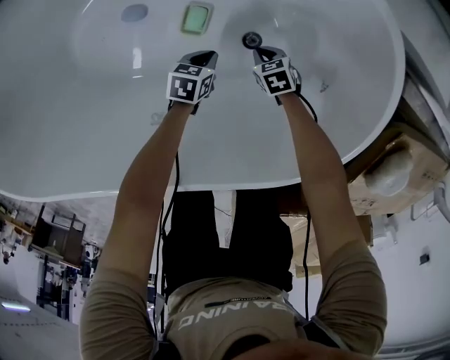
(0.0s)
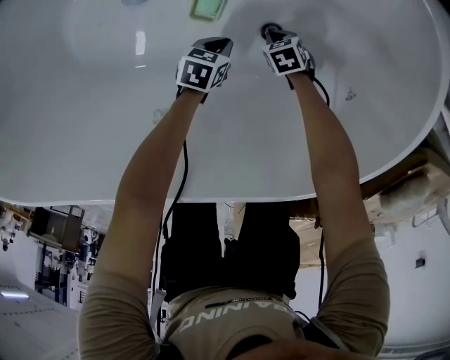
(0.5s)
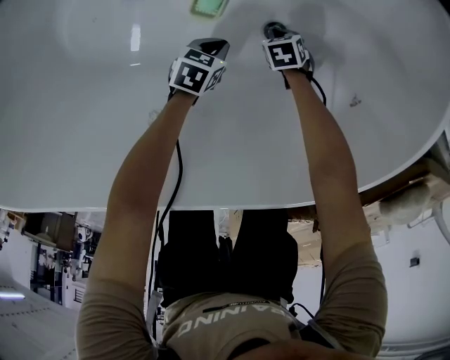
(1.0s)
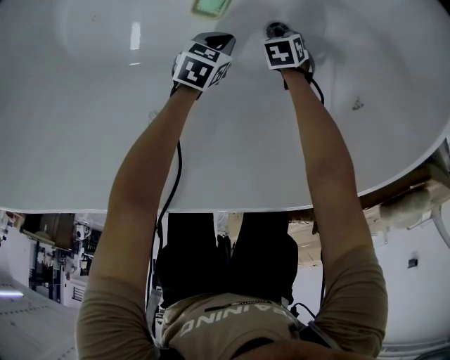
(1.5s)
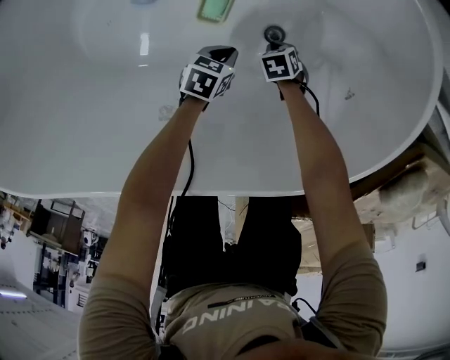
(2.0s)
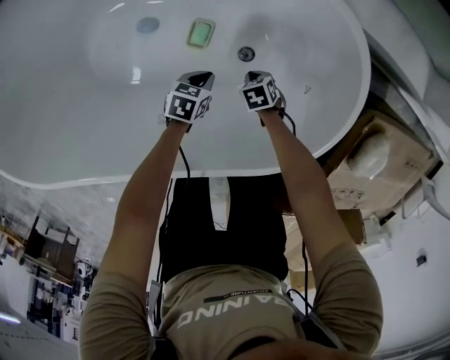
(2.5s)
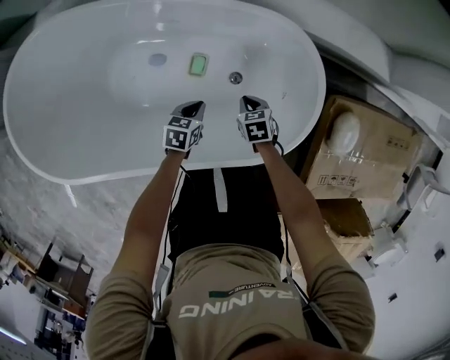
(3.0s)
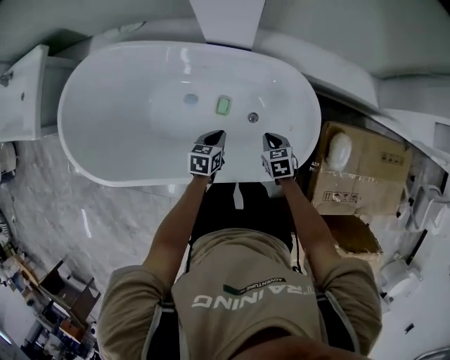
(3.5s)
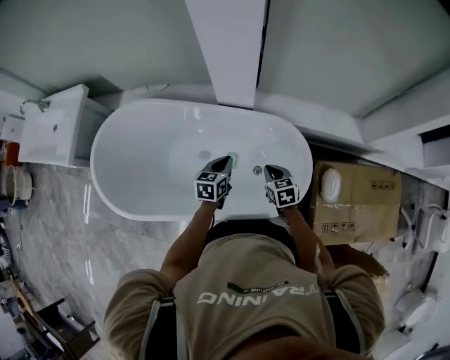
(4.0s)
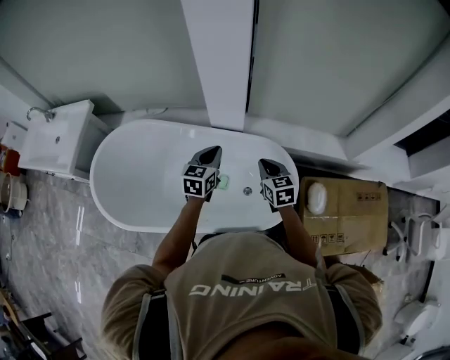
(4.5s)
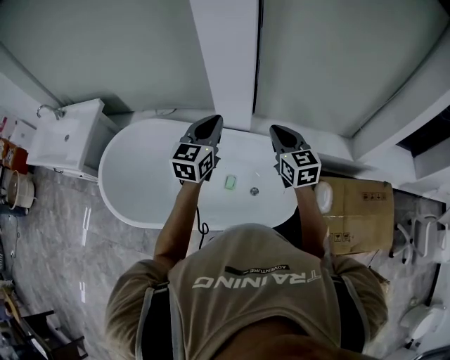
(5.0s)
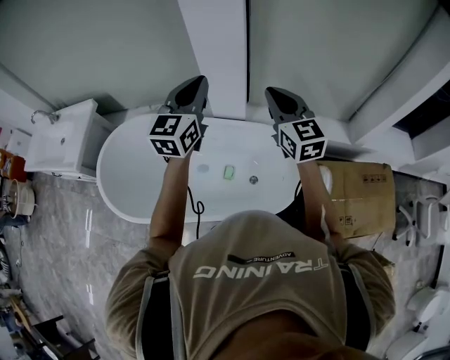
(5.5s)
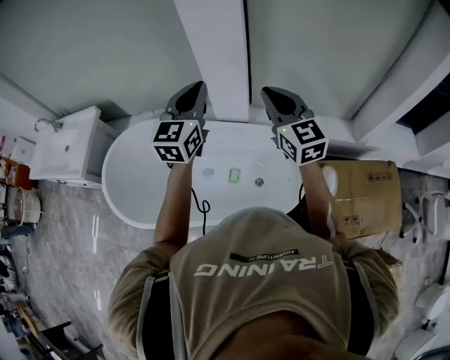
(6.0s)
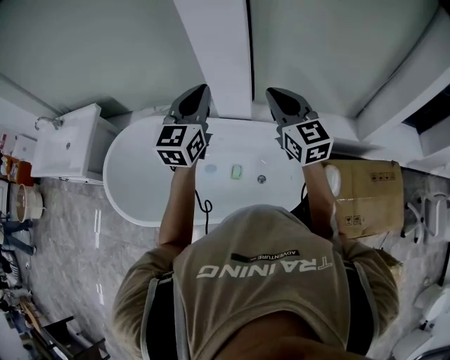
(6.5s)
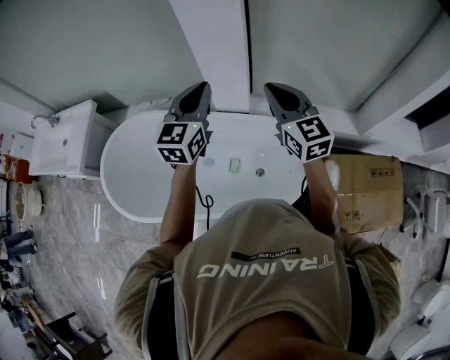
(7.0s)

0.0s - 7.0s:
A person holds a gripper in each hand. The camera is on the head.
0.0s - 2.0s: The right gripper moves downward, about 5 cm.
2.0s - 3.5s: Both grippers travel together upward, roughly 50 cm. The left gripper turns by approximately 20 degrees, while the right gripper rotates roughly 30 degrees.
3.5s - 5.0s: Both grippers travel together upward, roughly 50 cm. The right gripper tips its fingers upward by approximately 40 degrees. The left gripper angles its fingers upward, by about 40 degrees.
5.0s - 7.0s: The two grippers go roughly 10 cm upward.

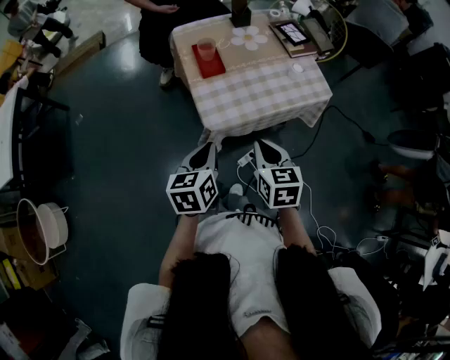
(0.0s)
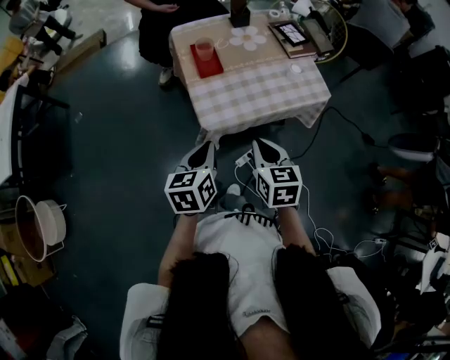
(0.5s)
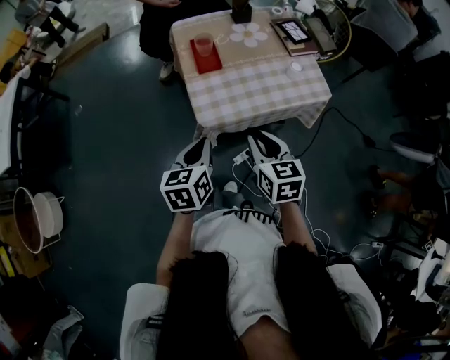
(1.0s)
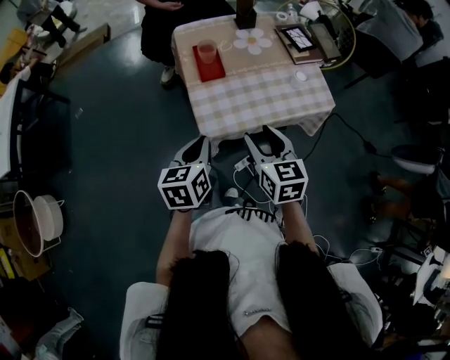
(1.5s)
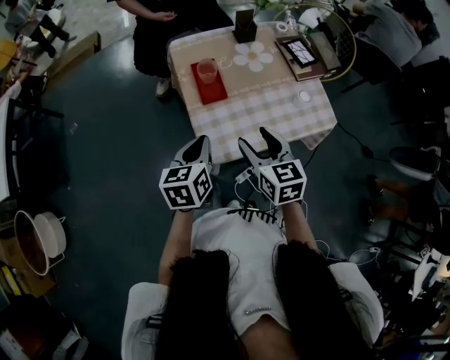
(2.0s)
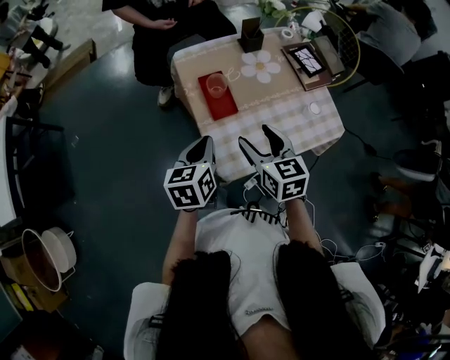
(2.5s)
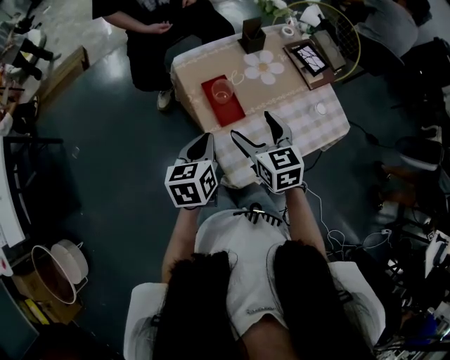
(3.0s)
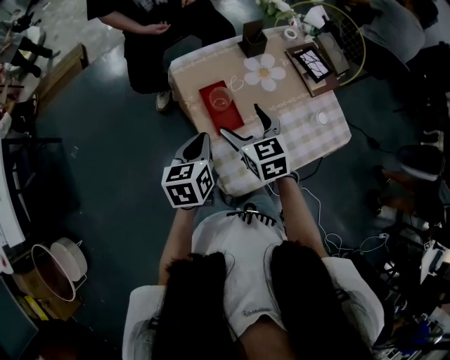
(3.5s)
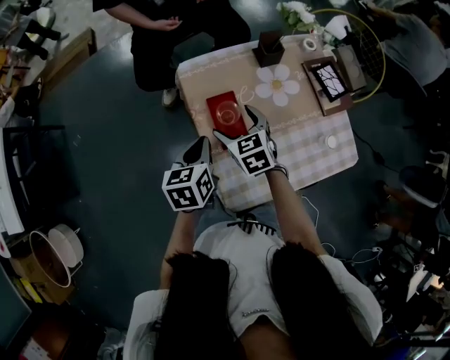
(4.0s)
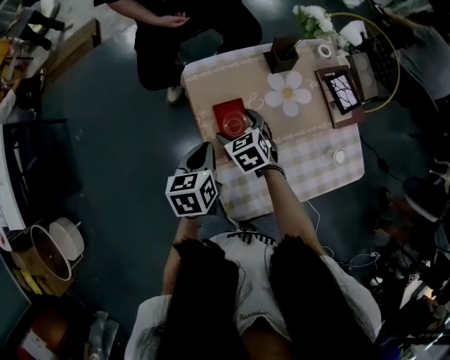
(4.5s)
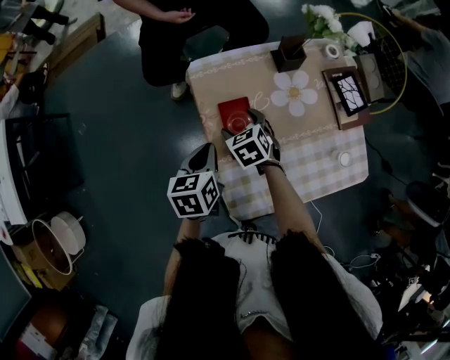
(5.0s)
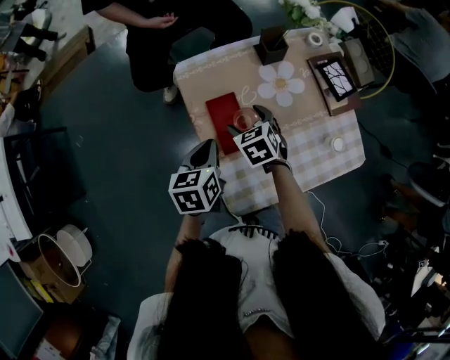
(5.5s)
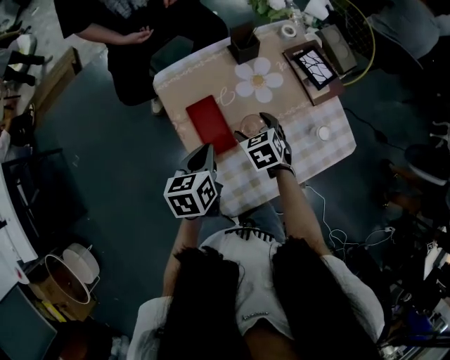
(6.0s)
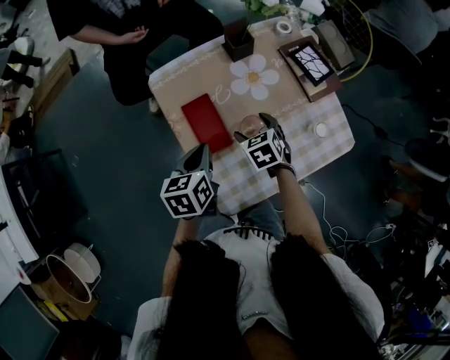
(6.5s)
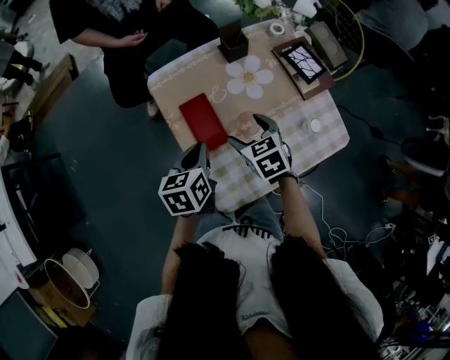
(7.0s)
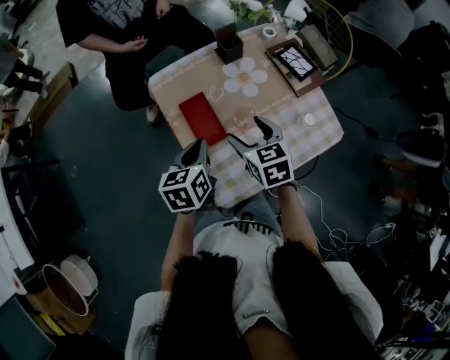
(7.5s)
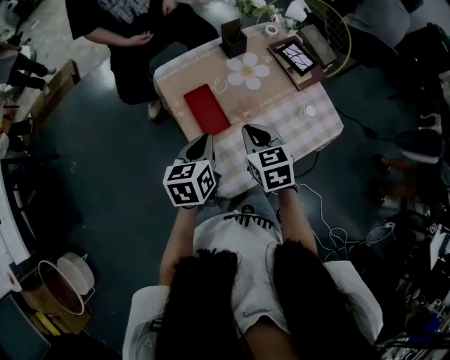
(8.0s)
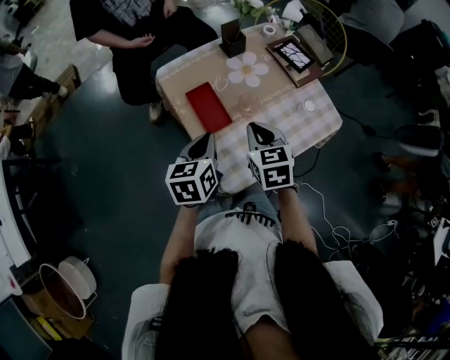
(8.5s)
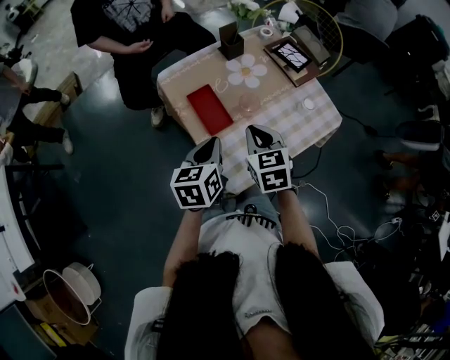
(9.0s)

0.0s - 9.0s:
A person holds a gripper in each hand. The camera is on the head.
0.0s - 2.0s: Both grippers move forward, about 15 cm. The right gripper opens up.
2.0s - 4.5s: The left gripper goes approximately 25 cm forward. The right gripper is displaced forward, downward and to the left by some 35 cm, changes its angle by about 30 degrees, and opens up.
4.5s - 7.0s: The left gripper moves to the right, about 5 cm. Meanwhile the right gripper goes some 15 cm to the right, backward and upward.
7.0s - 9.0s: The two grippers go roughly 10 cm backward and upward. The right gripper turns by some 20 degrees, and closes up.

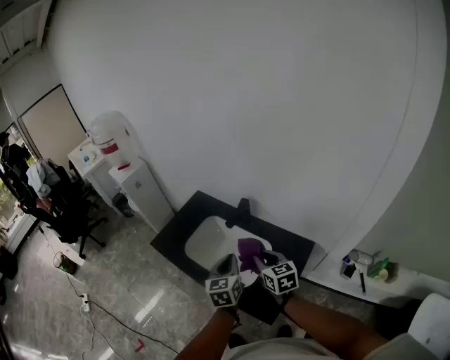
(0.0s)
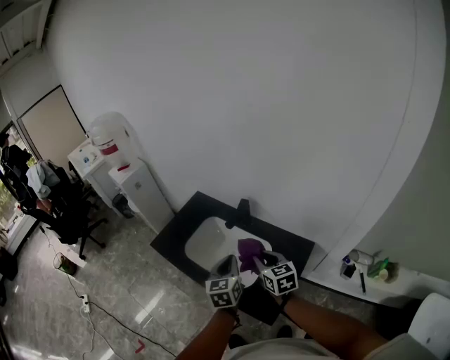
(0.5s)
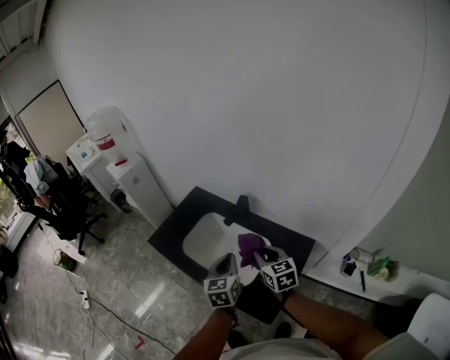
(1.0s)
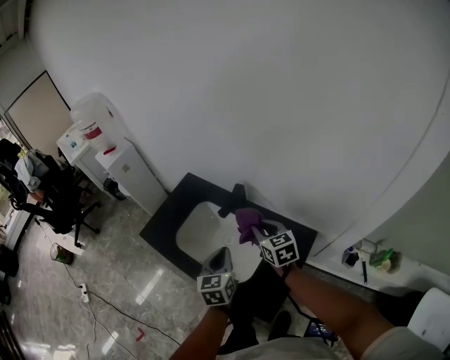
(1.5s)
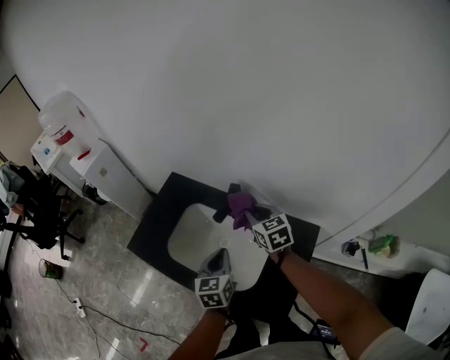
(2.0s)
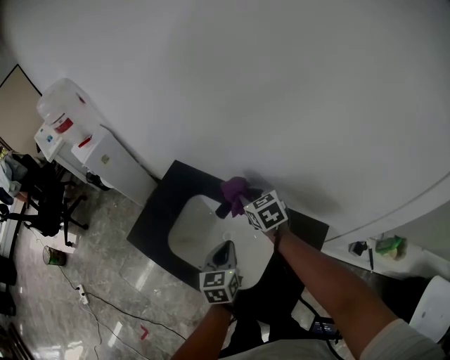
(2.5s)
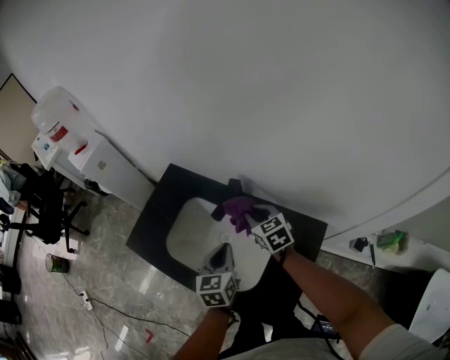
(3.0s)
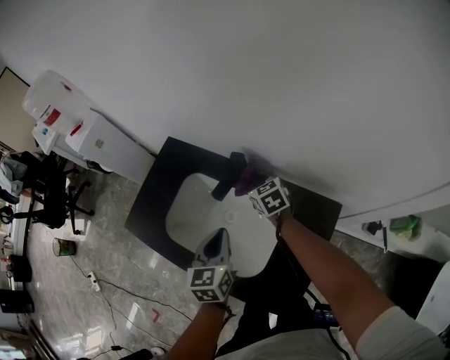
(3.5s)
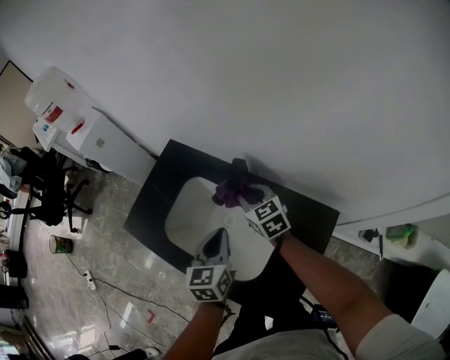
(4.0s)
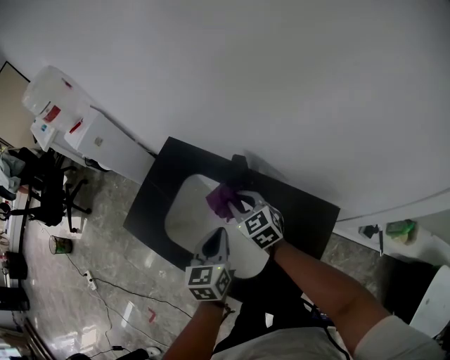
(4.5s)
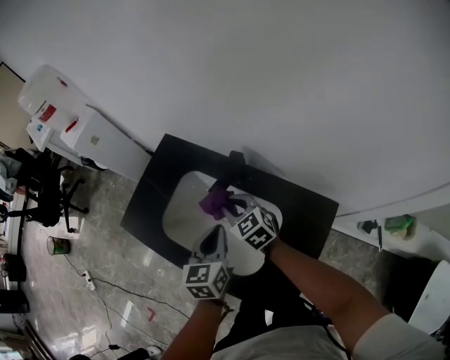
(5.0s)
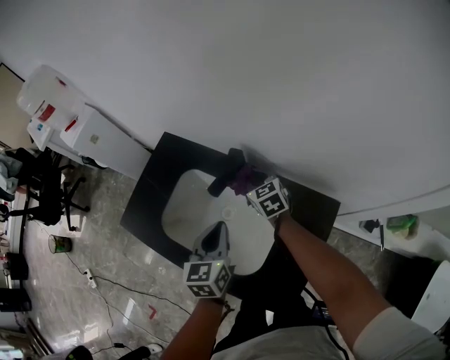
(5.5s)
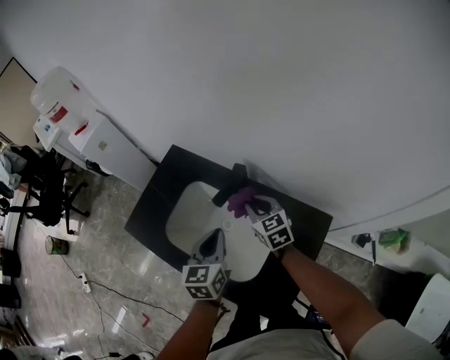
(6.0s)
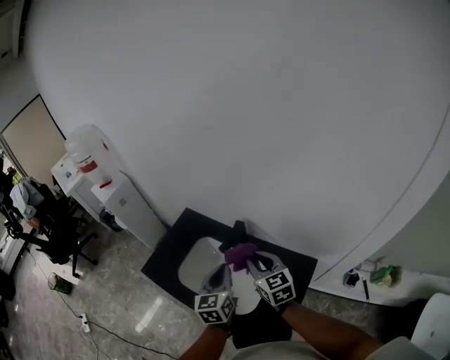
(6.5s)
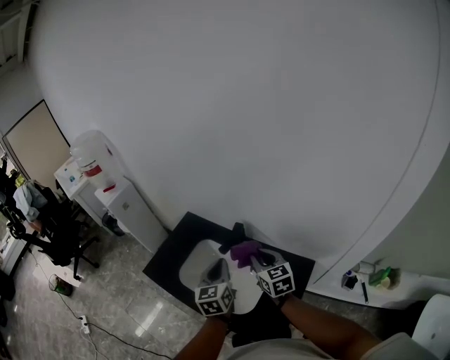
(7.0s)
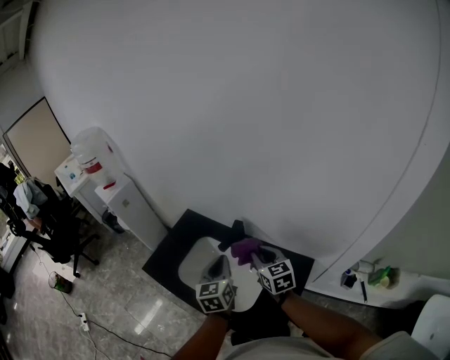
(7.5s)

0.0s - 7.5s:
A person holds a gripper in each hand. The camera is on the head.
0.0s - 2.0s: The right gripper goes approximately 20 cm forward. The left gripper shifts about 15 cm forward and downward.
2.0s - 4.0s: The right gripper heads downward and forward, covering some 10 cm, while the left gripper moves roughly 5 cm.
4.0s - 5.5s: The right gripper goes about 5 cm downward.
5.5s - 7.5s: The left gripper shifts some 15 cm upward, while the right gripper travels upward and backward by some 30 cm.

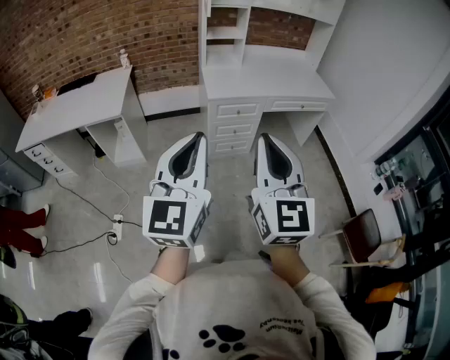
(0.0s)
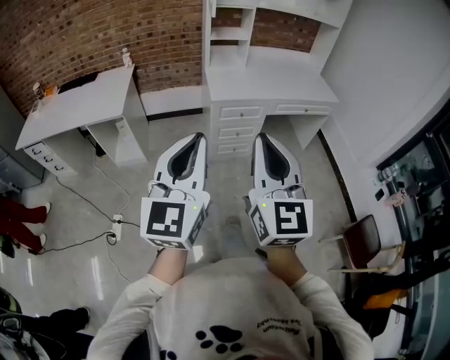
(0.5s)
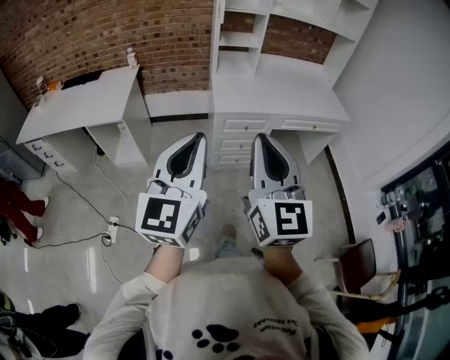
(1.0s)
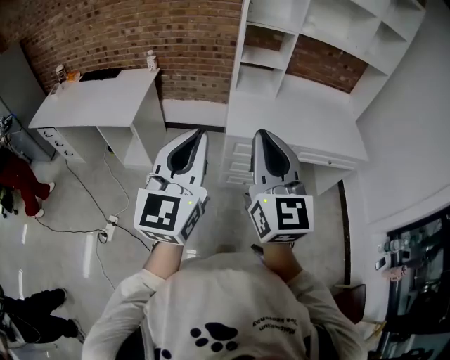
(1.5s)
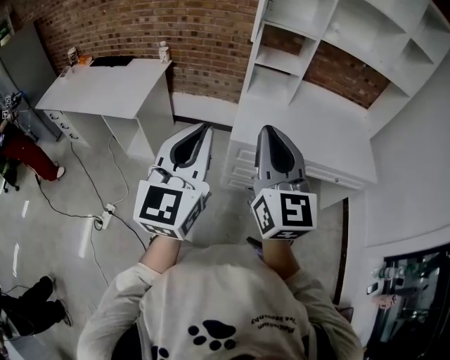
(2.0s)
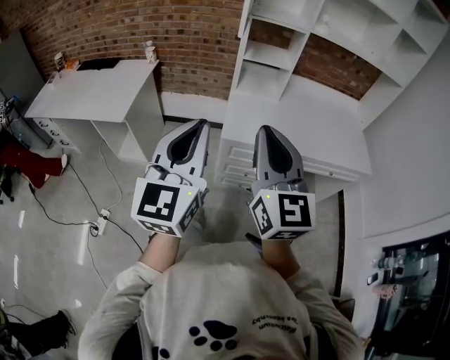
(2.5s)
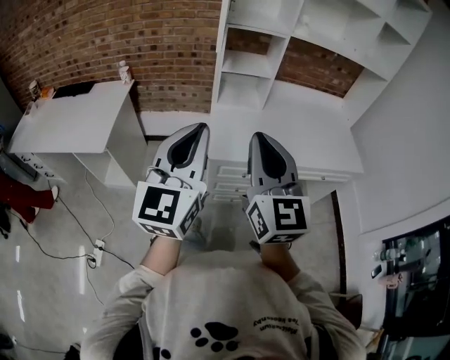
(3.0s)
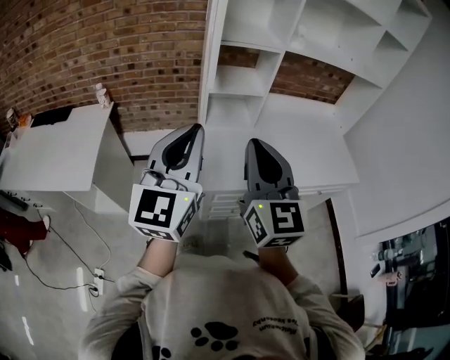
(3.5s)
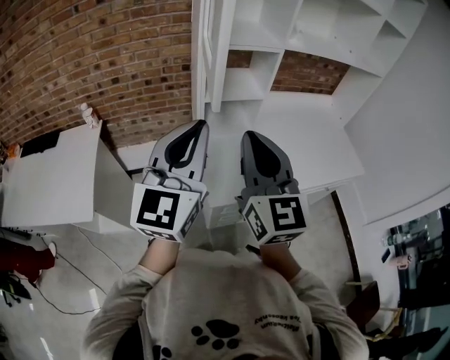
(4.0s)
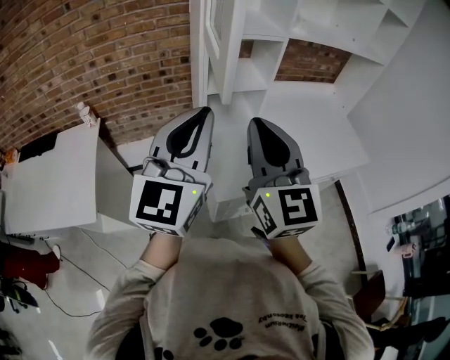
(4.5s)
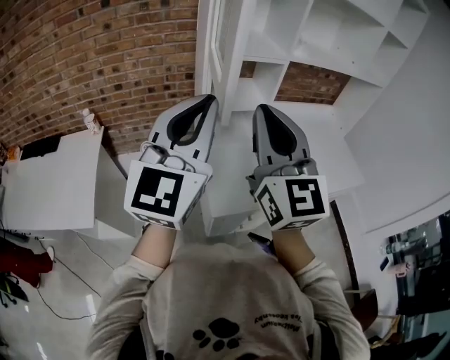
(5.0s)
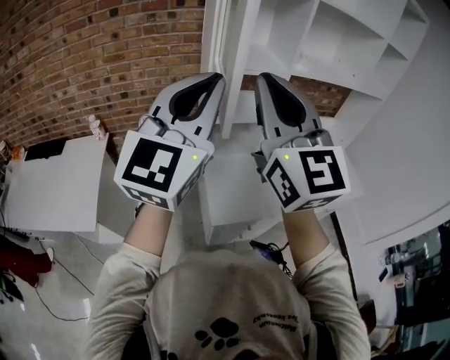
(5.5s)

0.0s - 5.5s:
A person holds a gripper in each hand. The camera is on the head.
0.0s - 2.0s: The grippers both shift forward by approximately 35 cm. The right gripper rotates approximately 20 degrees.
2.0s - 3.5s: Both grippers move forward, about 25 cm.
3.5s - 5.5s: The two grippers go roughly 20 cm upward and forward.
